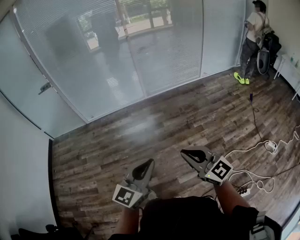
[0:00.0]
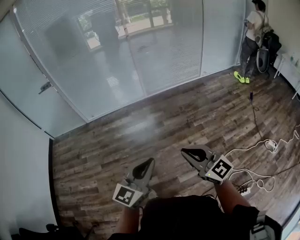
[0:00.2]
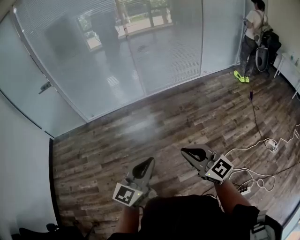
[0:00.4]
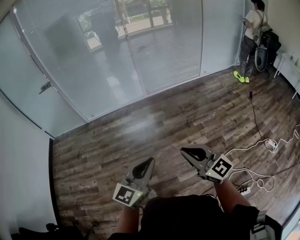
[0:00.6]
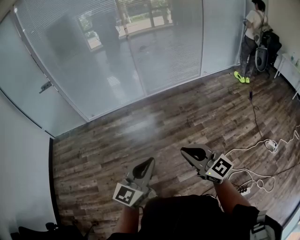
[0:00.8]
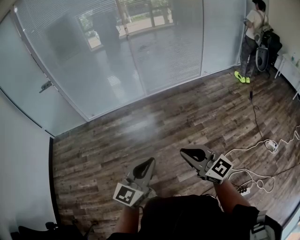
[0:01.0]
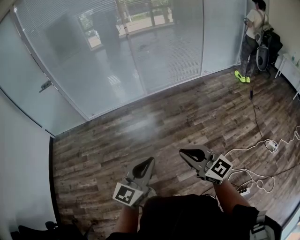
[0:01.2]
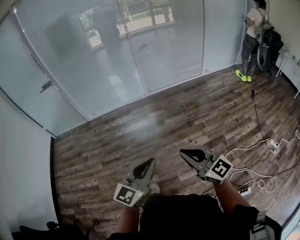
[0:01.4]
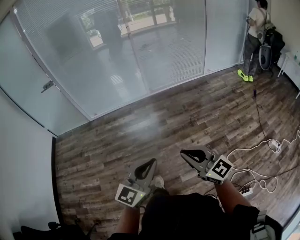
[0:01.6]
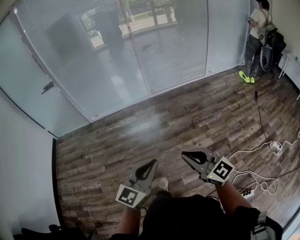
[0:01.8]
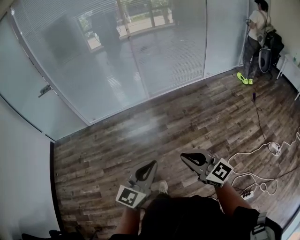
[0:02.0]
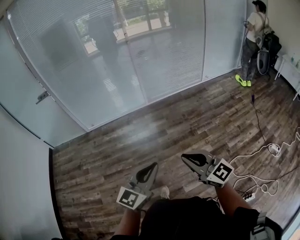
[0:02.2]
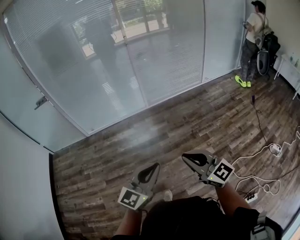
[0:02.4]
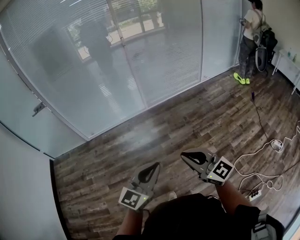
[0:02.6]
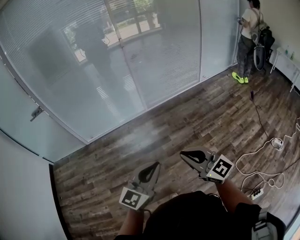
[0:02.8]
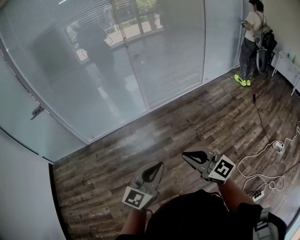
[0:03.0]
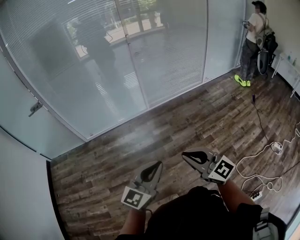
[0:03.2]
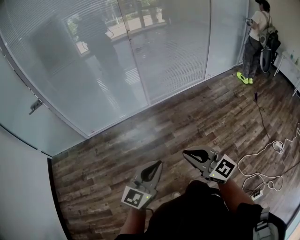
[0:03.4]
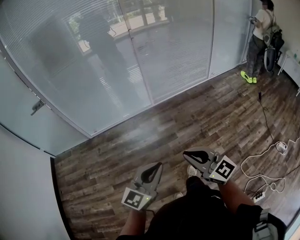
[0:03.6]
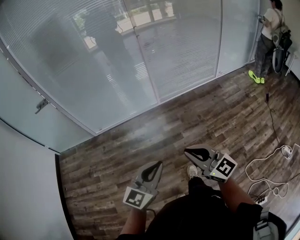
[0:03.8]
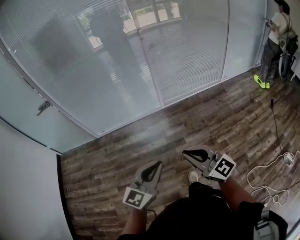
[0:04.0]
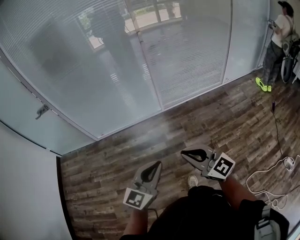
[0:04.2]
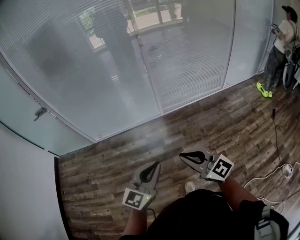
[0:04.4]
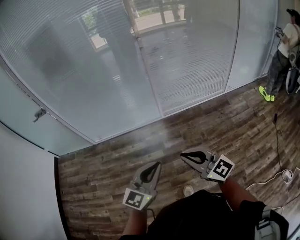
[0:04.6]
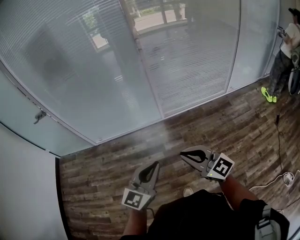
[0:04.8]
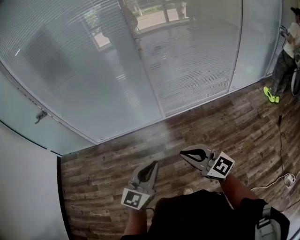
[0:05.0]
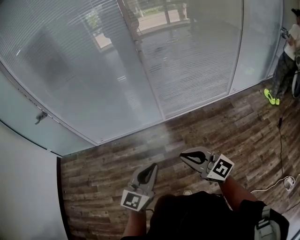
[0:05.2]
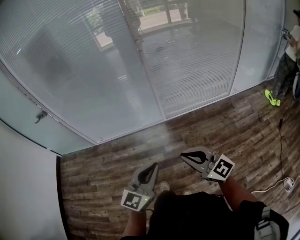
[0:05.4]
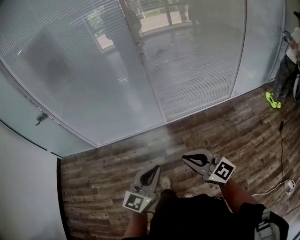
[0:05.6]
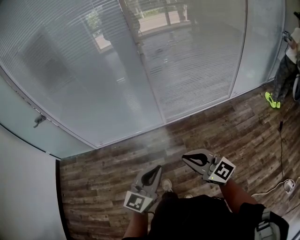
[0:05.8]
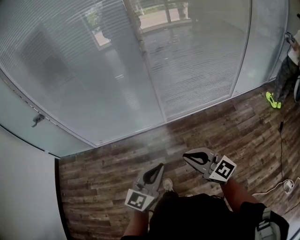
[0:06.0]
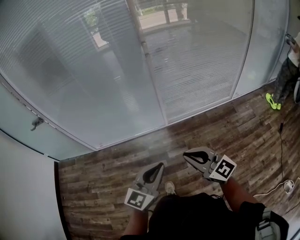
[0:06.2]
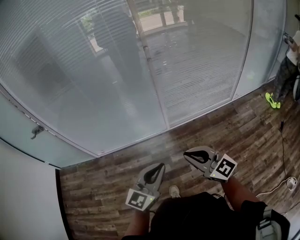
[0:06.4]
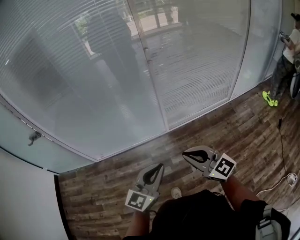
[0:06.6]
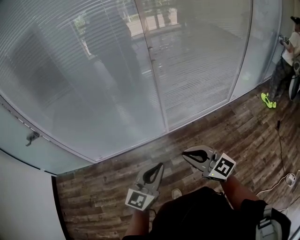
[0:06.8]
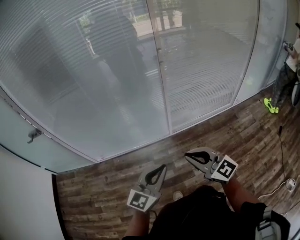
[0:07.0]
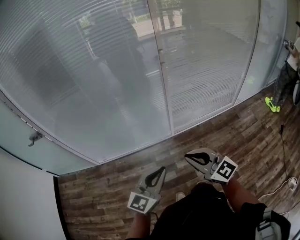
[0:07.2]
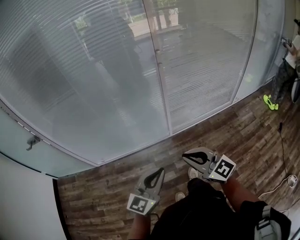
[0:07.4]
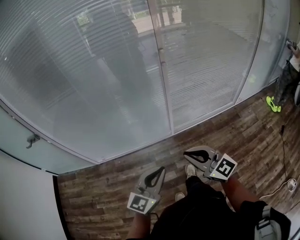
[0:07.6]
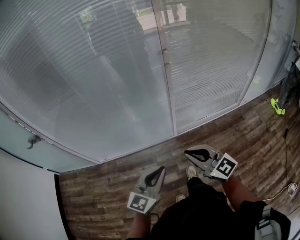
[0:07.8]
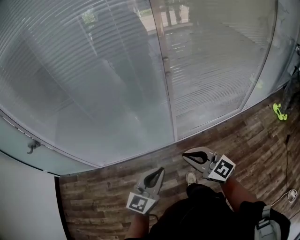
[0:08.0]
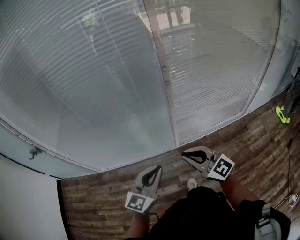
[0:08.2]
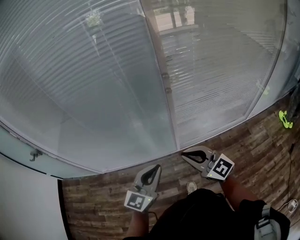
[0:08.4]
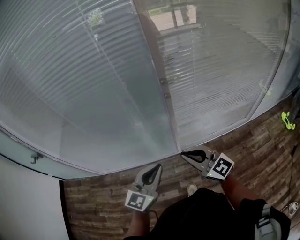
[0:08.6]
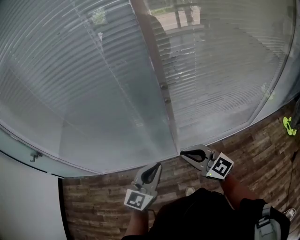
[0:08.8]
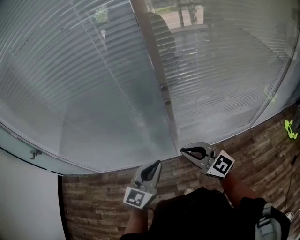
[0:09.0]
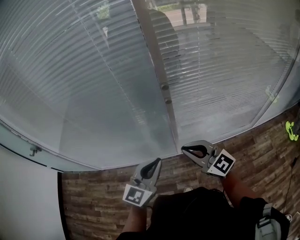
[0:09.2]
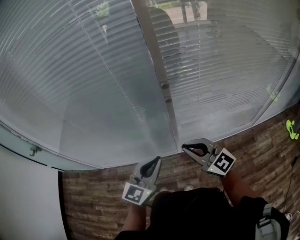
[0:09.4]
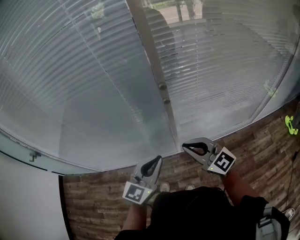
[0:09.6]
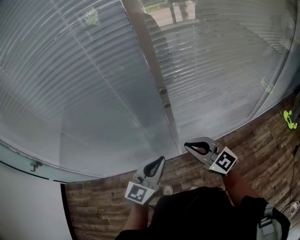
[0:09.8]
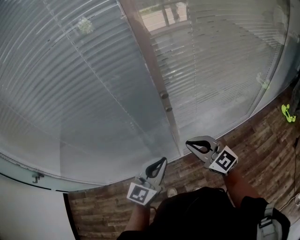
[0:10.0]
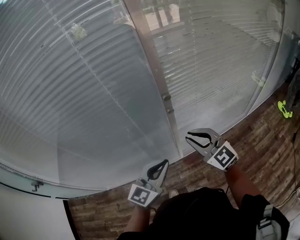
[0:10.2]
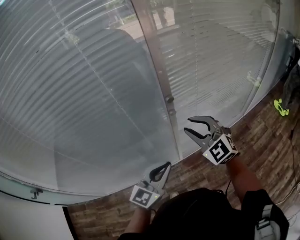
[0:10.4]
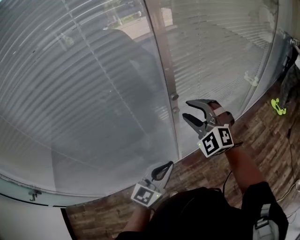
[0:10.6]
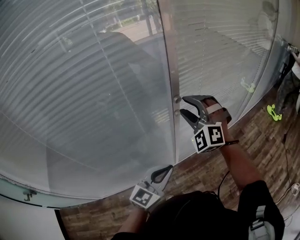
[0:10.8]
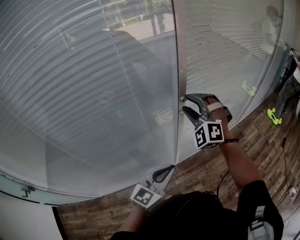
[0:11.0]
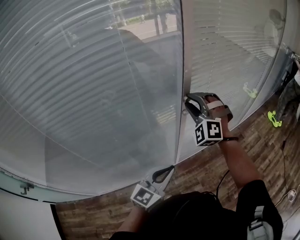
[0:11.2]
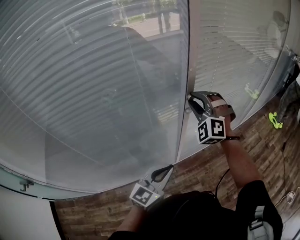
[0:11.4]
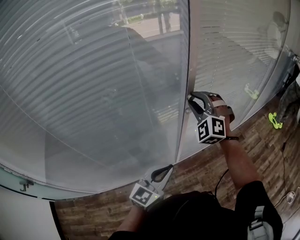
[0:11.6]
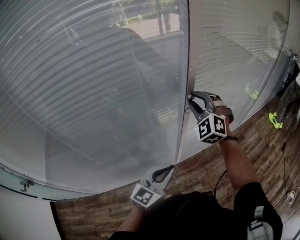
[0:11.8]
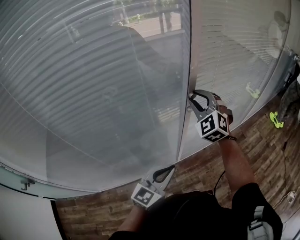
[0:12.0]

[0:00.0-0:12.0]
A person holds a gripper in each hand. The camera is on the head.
0:00.0 to 0:01.6: The grippers stay close to where they were, moving slightly.
0:01.6 to 0:03.0: The left gripper shifts roughly 20 cm forward. Meanwhile the right gripper is displaced forward and to the left by some 20 cm.
0:03.0 to 0:04.4: Both grippers move forward, approximately 20 cm.
0:04.4 to 0:06.0: Both grippers travel together forward and to the right, approximately 15 cm.
0:06.0 to 0:07.6: The grippers both shift forward and to the left by about 20 cm.
0:07.6 to 0:09.0: The two grippers go some 25 cm forward and to the right.
0:09.0 to 0:10.4: The left gripper shifts by roughly 5 cm, and rotates approximately 20 degrees, while the right gripper moves approximately 15 cm, turns by about 40 degrees, and opens its fingers.
0:10.4 to 0:12.0: The right gripper is displaced forward by roughly 10 cm, and rotates some 30 degrees.

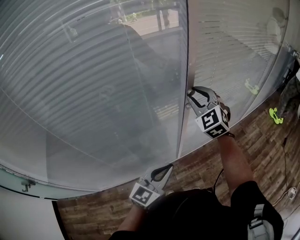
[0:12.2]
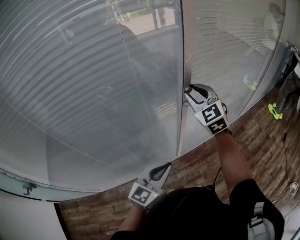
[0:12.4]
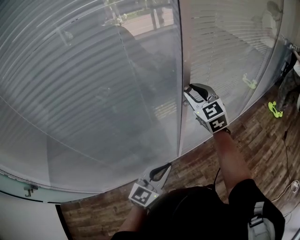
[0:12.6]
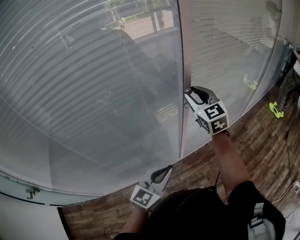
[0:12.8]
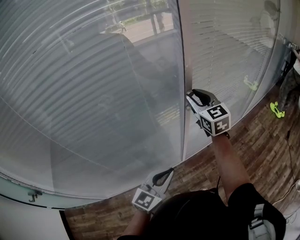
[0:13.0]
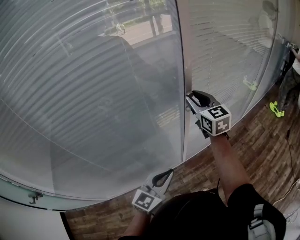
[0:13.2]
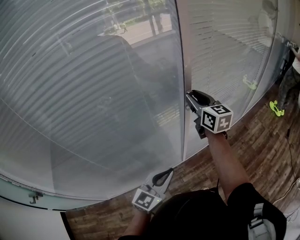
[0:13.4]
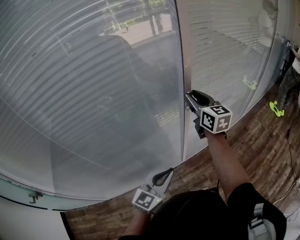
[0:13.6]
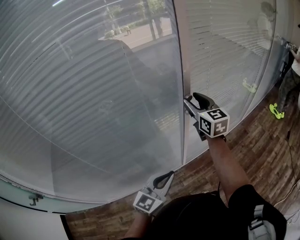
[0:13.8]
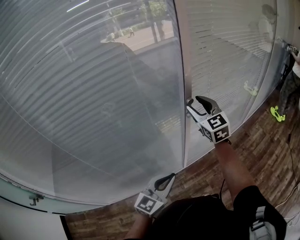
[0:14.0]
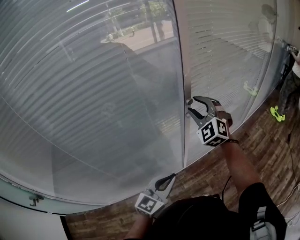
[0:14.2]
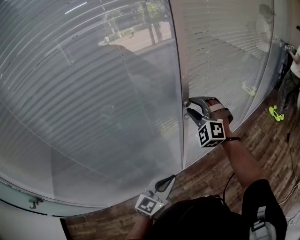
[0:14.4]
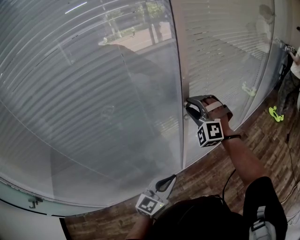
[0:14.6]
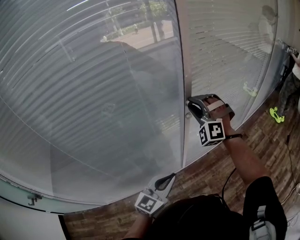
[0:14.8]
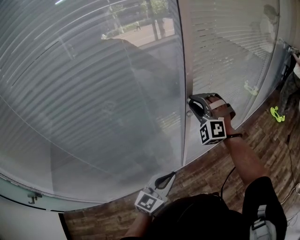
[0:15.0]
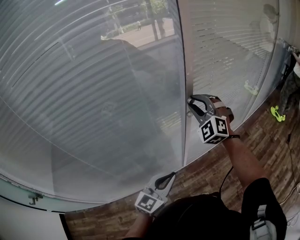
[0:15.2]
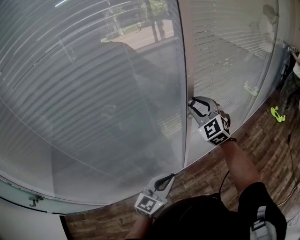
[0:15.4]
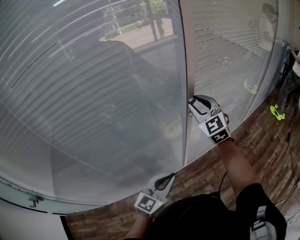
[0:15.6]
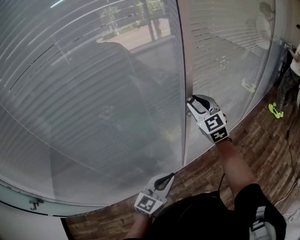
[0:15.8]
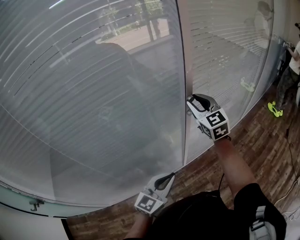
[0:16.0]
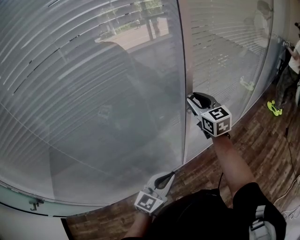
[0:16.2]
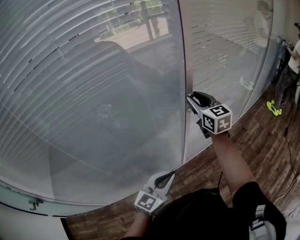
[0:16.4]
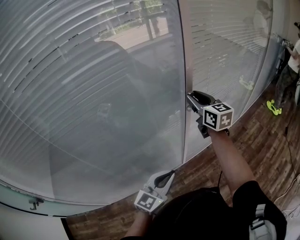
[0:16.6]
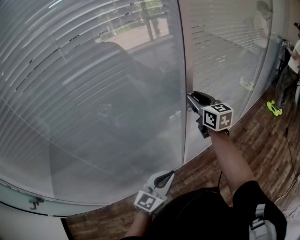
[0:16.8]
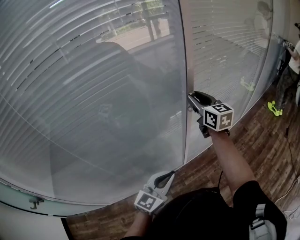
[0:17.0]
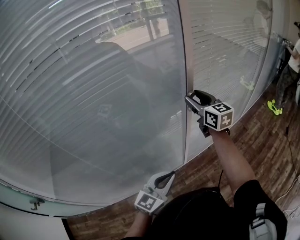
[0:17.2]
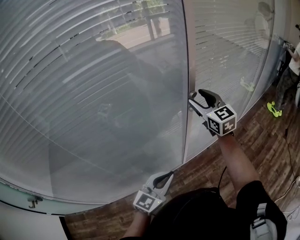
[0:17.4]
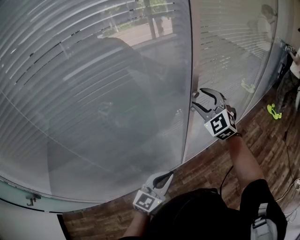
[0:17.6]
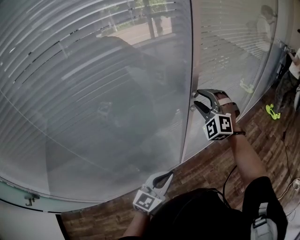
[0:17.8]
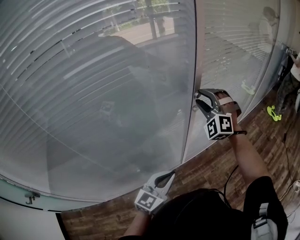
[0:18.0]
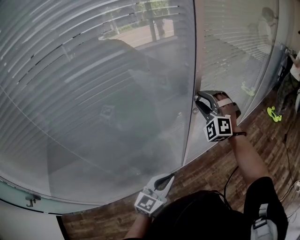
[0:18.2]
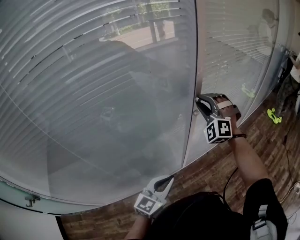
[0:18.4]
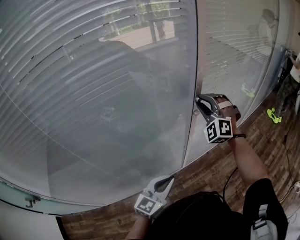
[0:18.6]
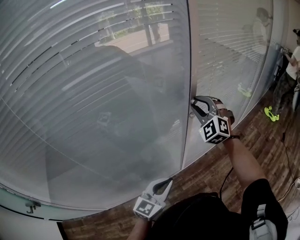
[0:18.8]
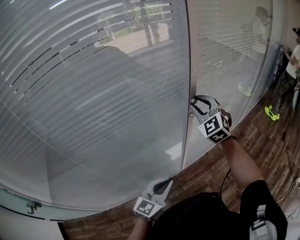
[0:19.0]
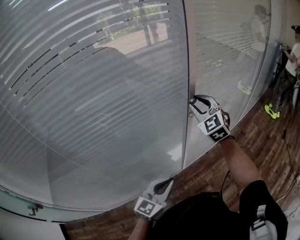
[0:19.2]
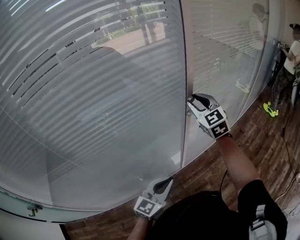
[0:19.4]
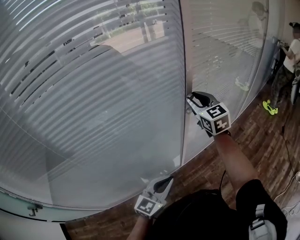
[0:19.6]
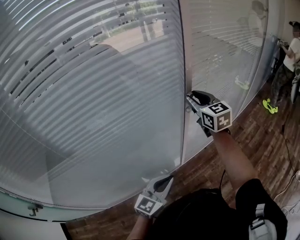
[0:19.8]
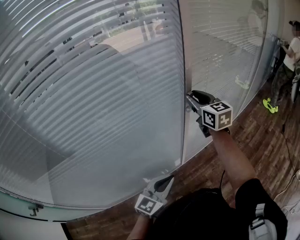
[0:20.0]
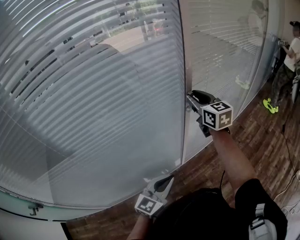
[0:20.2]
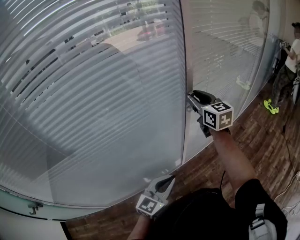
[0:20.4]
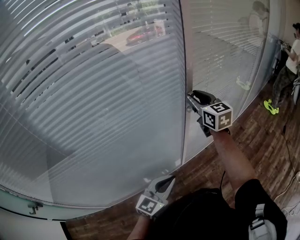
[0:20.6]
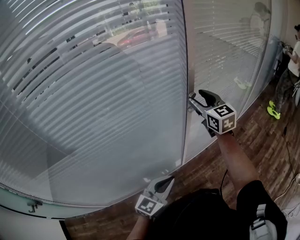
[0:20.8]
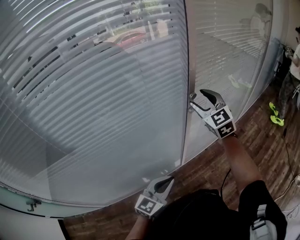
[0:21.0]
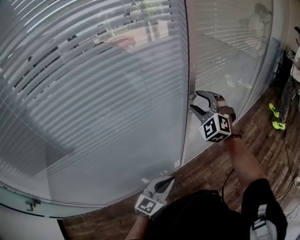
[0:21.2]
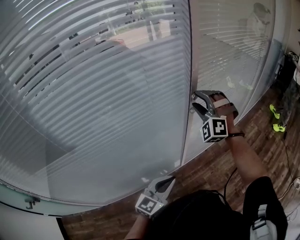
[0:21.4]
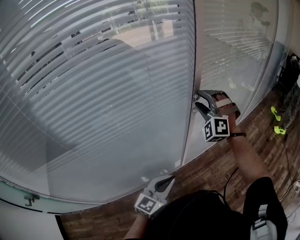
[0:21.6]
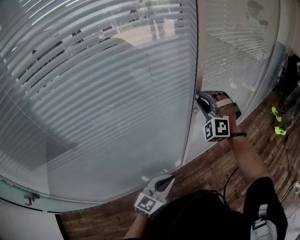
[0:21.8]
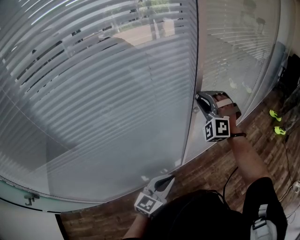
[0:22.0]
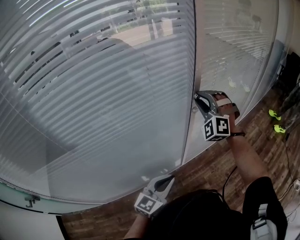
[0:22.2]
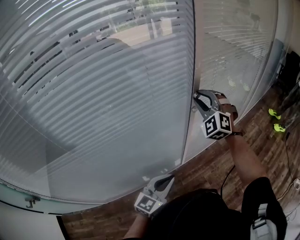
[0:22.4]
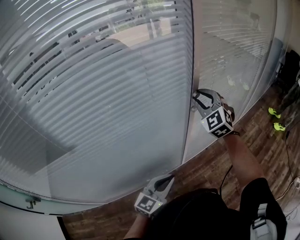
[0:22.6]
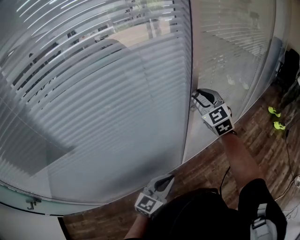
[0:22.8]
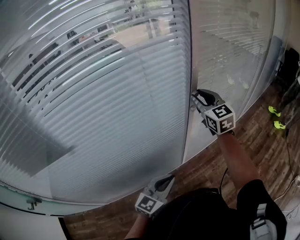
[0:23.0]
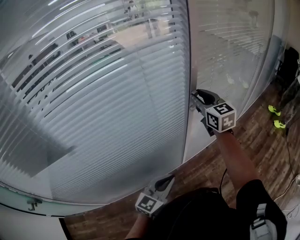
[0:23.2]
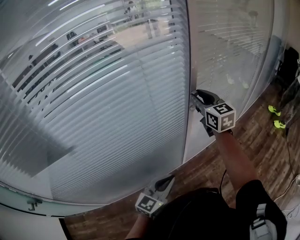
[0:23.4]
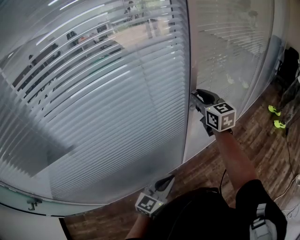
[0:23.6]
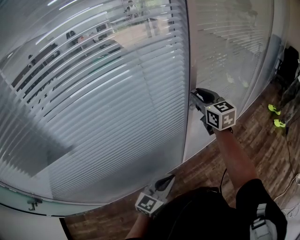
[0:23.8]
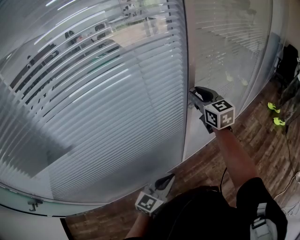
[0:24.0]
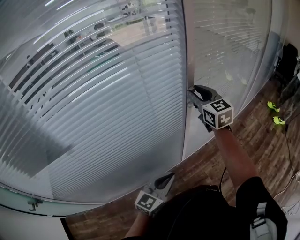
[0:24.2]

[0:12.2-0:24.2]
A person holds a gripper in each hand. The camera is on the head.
0:12.2 to 0:13.8: The right gripper twists some 50 degrees clockwise, seen from behind.
0:13.8 to 0:15.2: The right gripper rolls counterclockwise, seen from behind, by approximately 60 degrees.
0:15.2 to 0:16.6: The right gripper rolls clockwise, seen from behind, by some 70 degrees.
0:16.6 to 0:18.2: The right gripper twists some 90 degrees counterclockwise, seen from behind.
0:18.2 to 0:19.8: The right gripper rolls clockwise, seen from behind, by roughly 80 degrees.
0:19.8 to 0:21.2: The right gripper rolls counterclockwise, seen from behind, by about 60 degrees, and opens up.
0:21.2 to 0:22.6: The right gripper closes.
0:22.6 to 0:24.2: The right gripper twists some 40 degrees clockwise, seen from behind.
